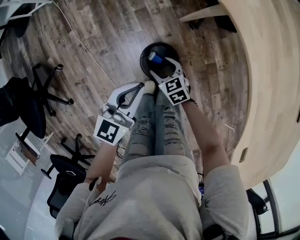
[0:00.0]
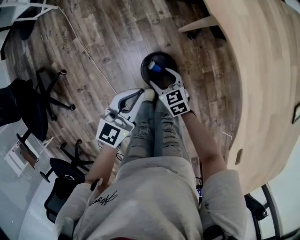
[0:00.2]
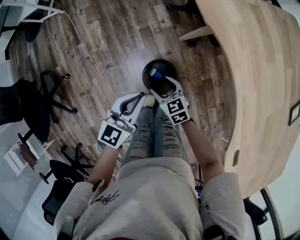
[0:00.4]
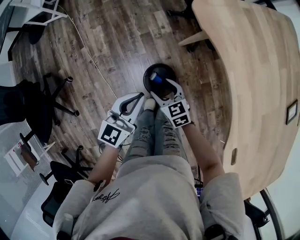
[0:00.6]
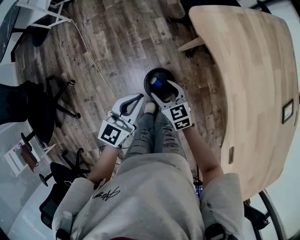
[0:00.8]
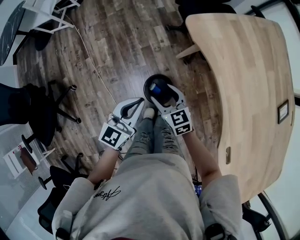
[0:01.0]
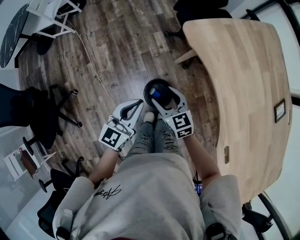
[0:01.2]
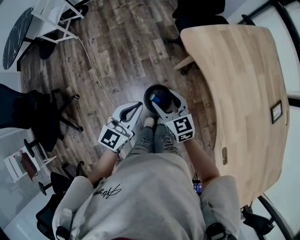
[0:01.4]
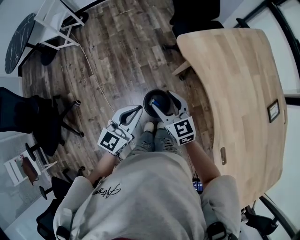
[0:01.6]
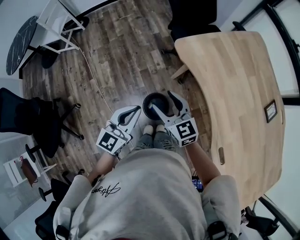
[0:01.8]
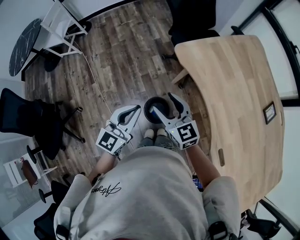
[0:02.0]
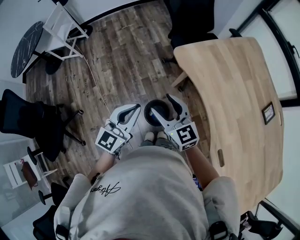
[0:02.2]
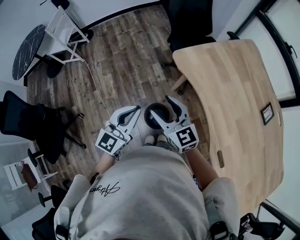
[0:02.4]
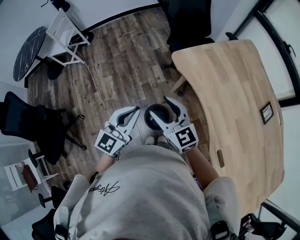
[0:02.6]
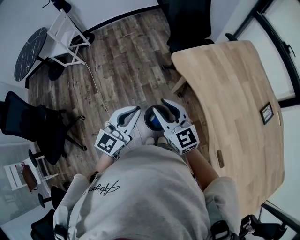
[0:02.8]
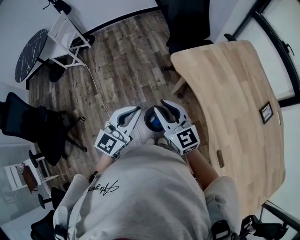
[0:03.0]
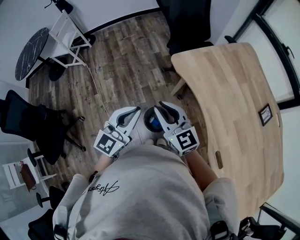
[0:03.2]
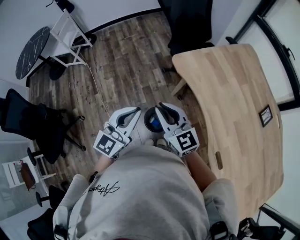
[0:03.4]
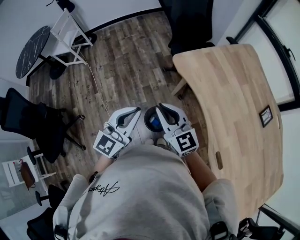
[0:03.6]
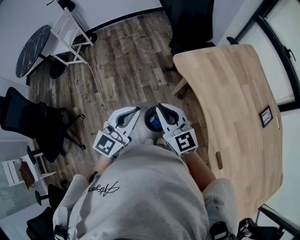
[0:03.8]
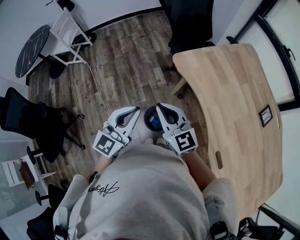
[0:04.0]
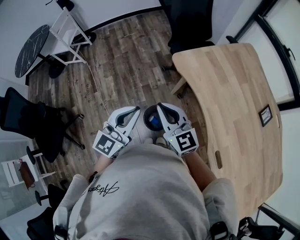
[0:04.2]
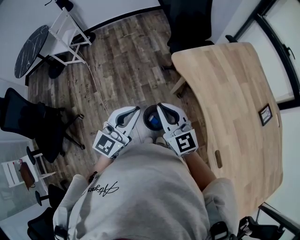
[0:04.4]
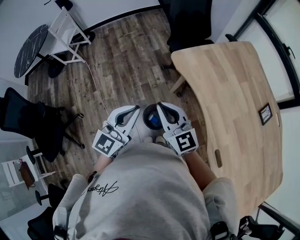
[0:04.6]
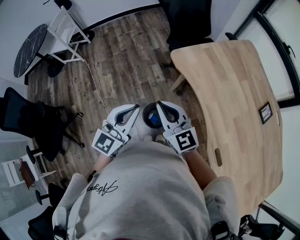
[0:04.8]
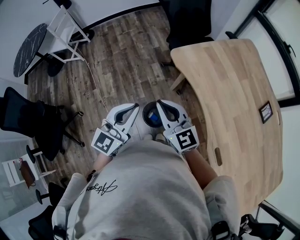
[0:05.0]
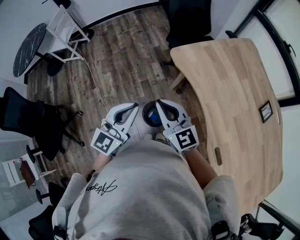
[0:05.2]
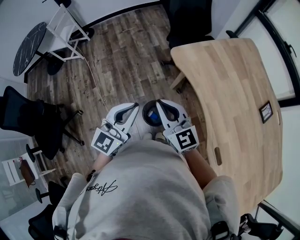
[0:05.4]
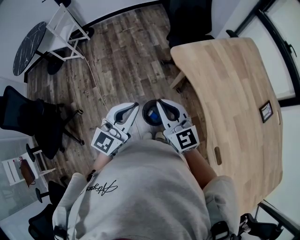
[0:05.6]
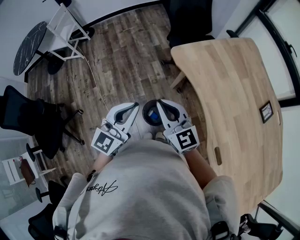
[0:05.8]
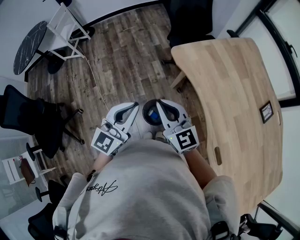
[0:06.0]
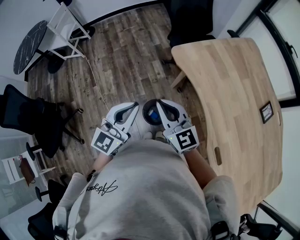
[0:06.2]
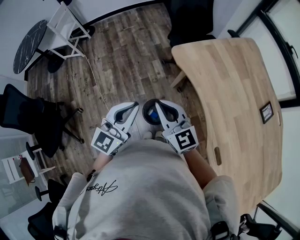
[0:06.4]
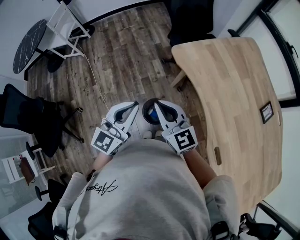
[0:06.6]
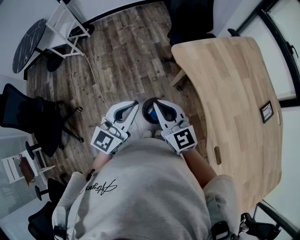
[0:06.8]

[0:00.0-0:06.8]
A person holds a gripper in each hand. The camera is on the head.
0:00.0 to 0:01.4: The right gripper heads upward, covering approximately 30 cm, and turns by roughly 30 degrees. Meanwhile the left gripper moves upward, about 15 cm.
0:01.4 to 0:02.8: Both grippers travel together upward, approximately 15 cm. The right gripper closes up.
0:02.8 to 0:04.0: The right gripper closes up.
0:04.0 to 0:06.8: The two grippers keep their place.

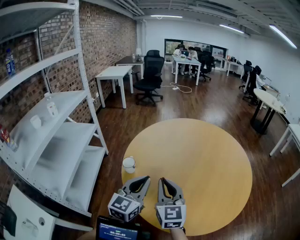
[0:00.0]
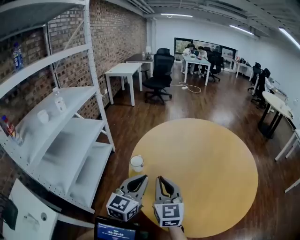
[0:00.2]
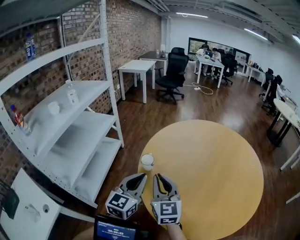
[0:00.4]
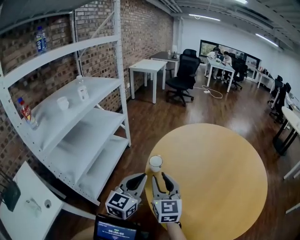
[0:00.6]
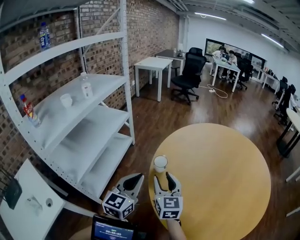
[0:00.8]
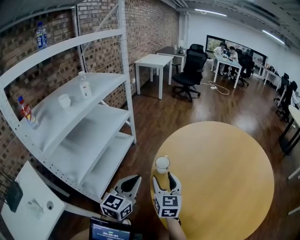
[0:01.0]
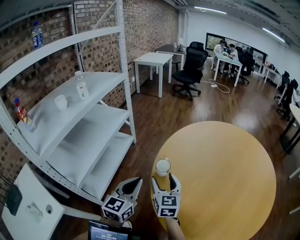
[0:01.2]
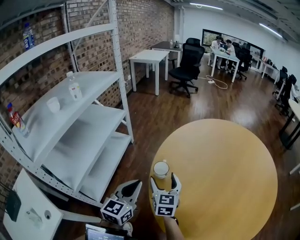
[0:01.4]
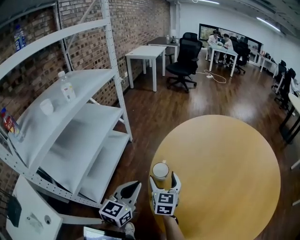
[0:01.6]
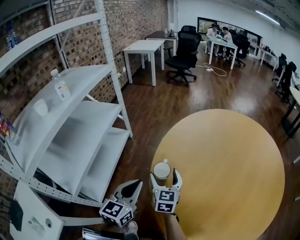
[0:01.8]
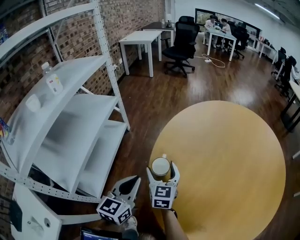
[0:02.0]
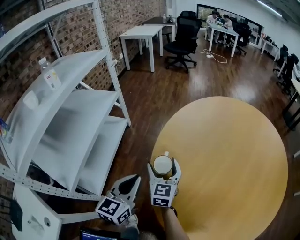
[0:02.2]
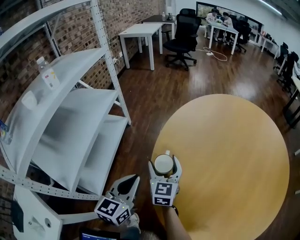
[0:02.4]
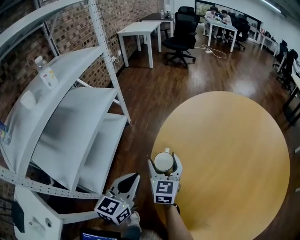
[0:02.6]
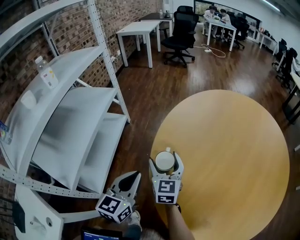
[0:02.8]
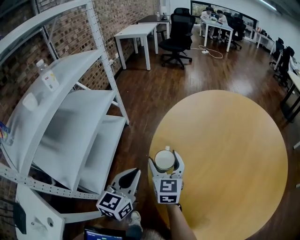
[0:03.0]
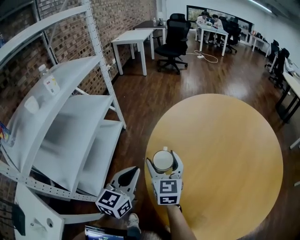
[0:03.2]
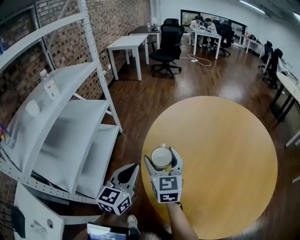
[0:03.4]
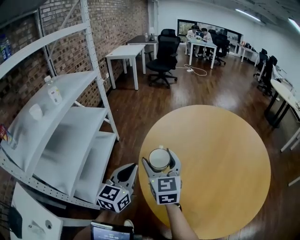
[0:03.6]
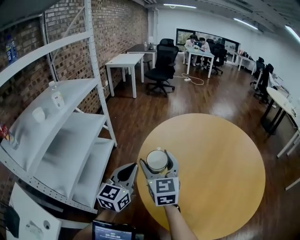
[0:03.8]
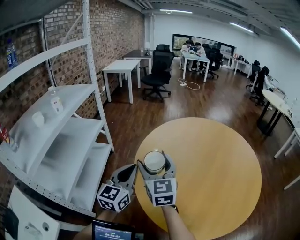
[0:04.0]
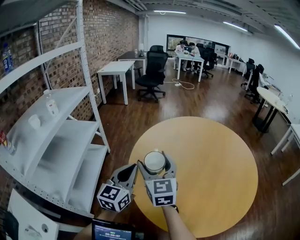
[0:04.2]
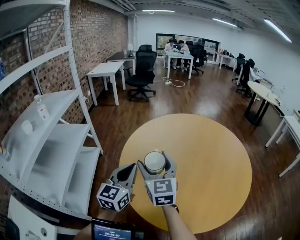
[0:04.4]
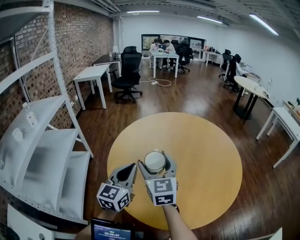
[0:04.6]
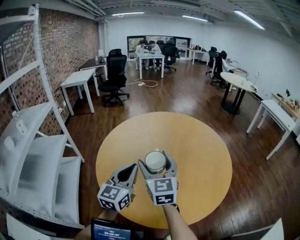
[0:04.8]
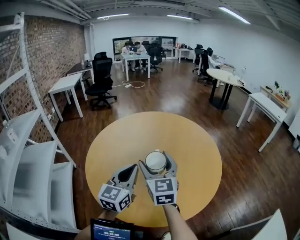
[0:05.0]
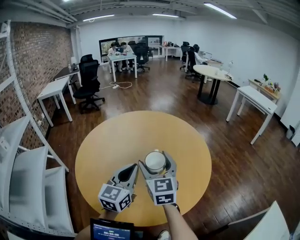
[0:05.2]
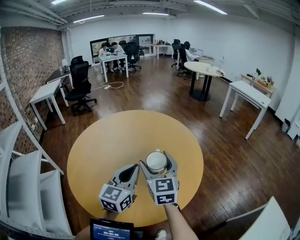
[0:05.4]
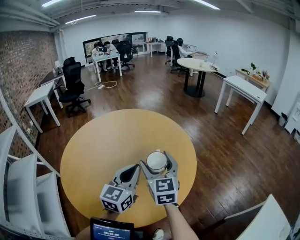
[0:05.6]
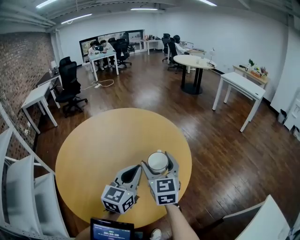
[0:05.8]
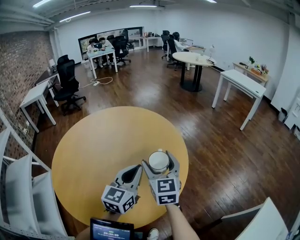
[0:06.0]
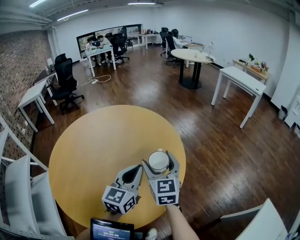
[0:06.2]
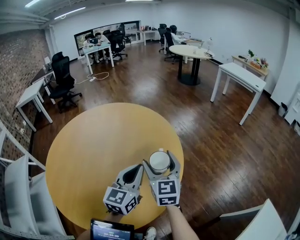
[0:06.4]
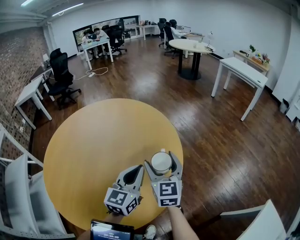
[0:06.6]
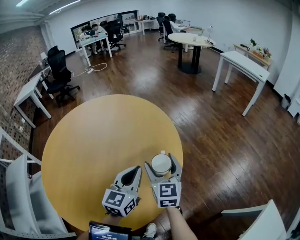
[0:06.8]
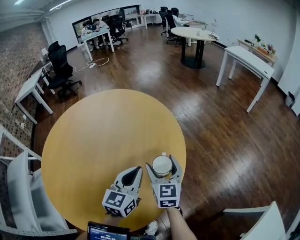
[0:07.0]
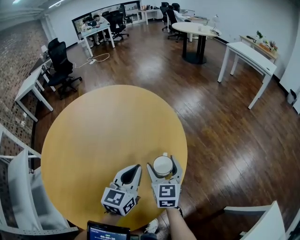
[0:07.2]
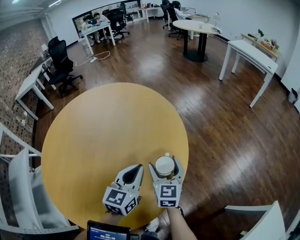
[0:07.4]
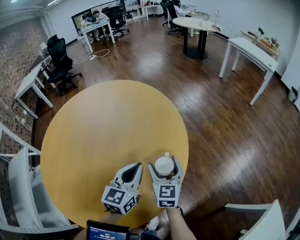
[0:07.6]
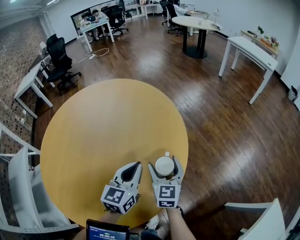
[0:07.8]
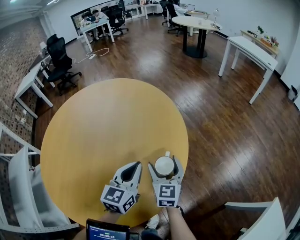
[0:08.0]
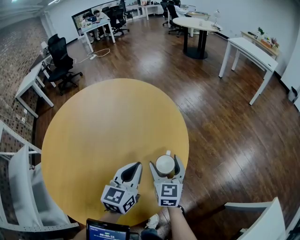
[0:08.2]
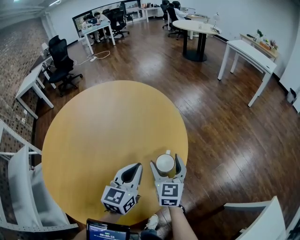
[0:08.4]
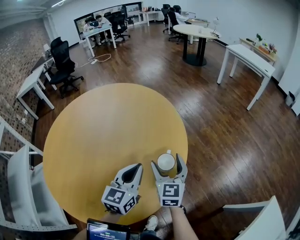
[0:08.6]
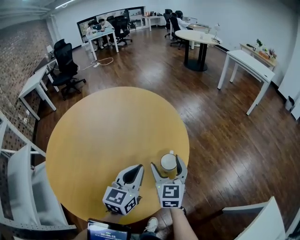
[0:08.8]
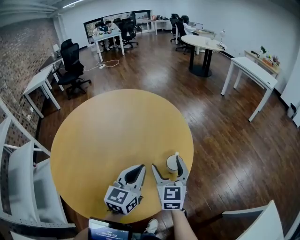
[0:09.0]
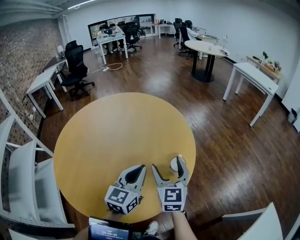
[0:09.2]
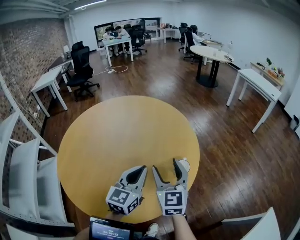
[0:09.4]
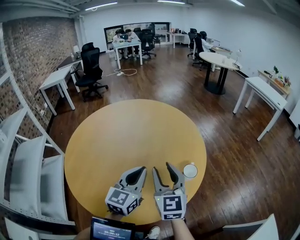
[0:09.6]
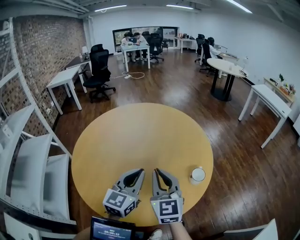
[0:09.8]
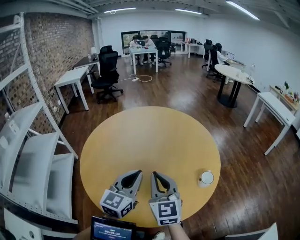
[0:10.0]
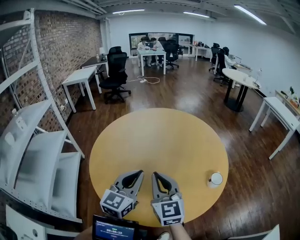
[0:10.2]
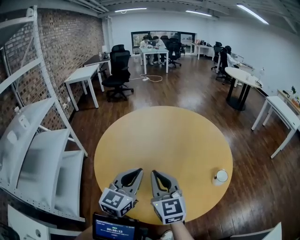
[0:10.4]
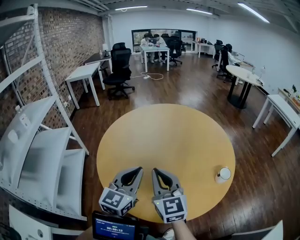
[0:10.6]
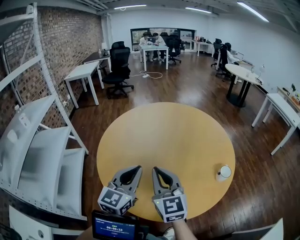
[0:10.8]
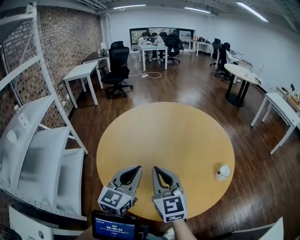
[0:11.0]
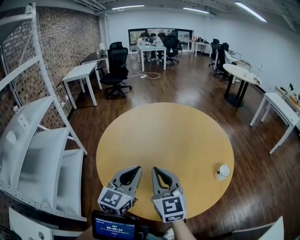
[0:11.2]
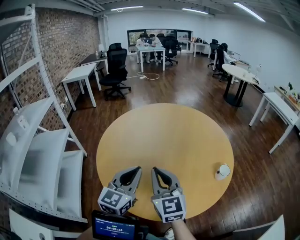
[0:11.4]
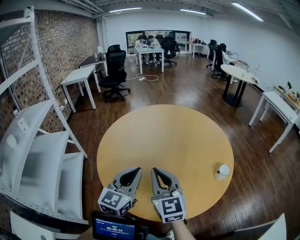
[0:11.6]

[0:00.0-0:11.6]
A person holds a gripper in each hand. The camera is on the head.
0:00.0 to 0:01.4: The left gripper heads to the left and downward, covering roughly 20 cm; the right gripper heads downward, to the left and forward, covering some 25 cm, and opens its fingers.
0:01.4 to 0:02.8: The right gripper moves forward, roughly 5 cm, while the left gripper goes roughly 5 cm downward.
0:02.8 to 0:04.4: The left gripper is displaced upward and to the right by some 20 cm, while the right gripper goes approximately 30 cm upward, to the right and backward.
0:04.4 to 0:05.8: The two grippers travel together, some 40 cm. The right gripper changes its angle by some 30 degrees, while the left gripper changes its angle by some 30 degrees.
0:05.8 to 0:07.2: The right gripper moves downward, to the right and forward, roughly 20 cm; the left gripper moves downward, forward and to the right, roughly 15 cm.
0:07.2 to 0:08.8: The right gripper changes place by approximately 5 cm. Meanwhile the left gripper travels backward by approximately 5 cm.
0:08.8 to 0:10.2: The grippers both shift to the left and upward by approximately 30 cm. The right gripper changes its angle by roughly 30 degrees, and closes up.
0:10.2 to 0:11.6: Both grippers travel together to the left, some 5 cm.

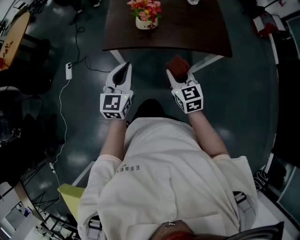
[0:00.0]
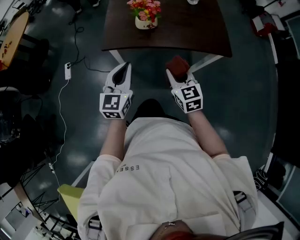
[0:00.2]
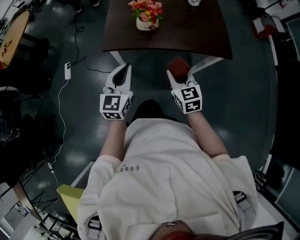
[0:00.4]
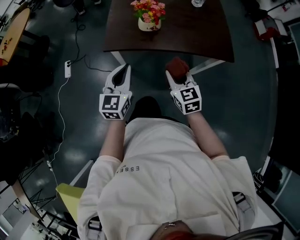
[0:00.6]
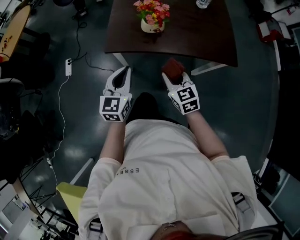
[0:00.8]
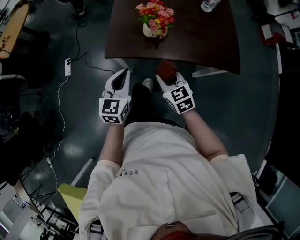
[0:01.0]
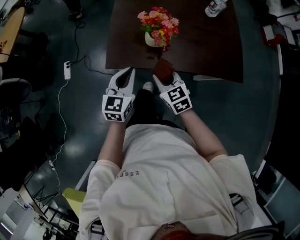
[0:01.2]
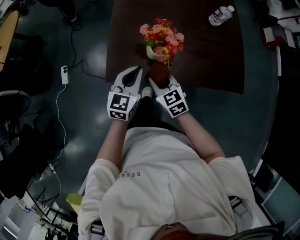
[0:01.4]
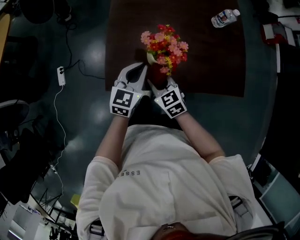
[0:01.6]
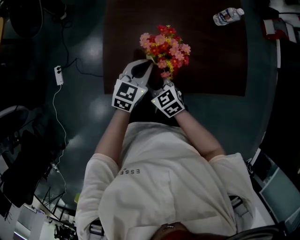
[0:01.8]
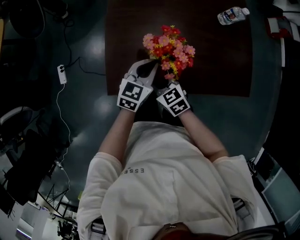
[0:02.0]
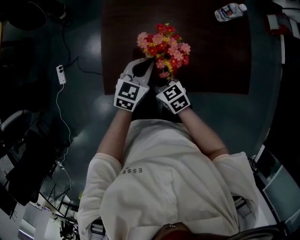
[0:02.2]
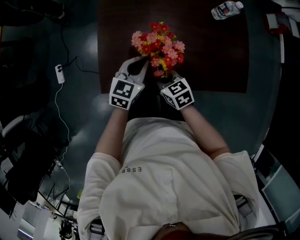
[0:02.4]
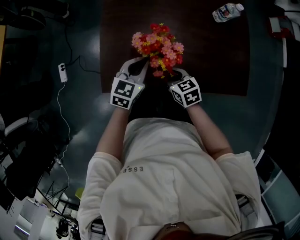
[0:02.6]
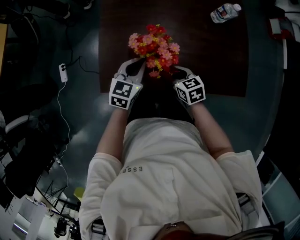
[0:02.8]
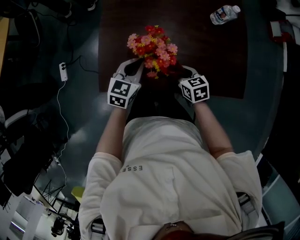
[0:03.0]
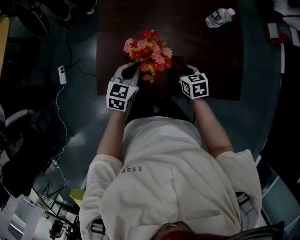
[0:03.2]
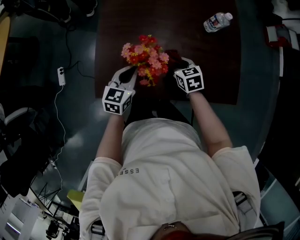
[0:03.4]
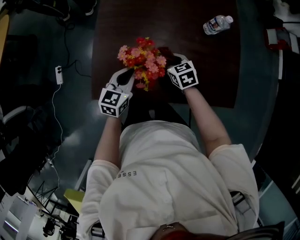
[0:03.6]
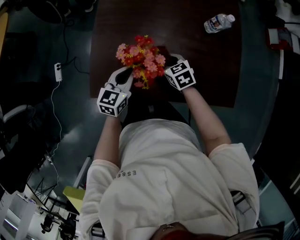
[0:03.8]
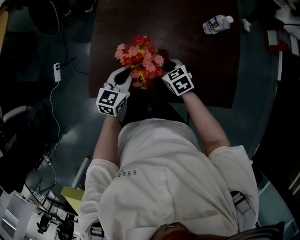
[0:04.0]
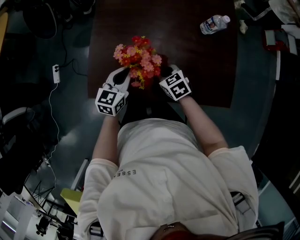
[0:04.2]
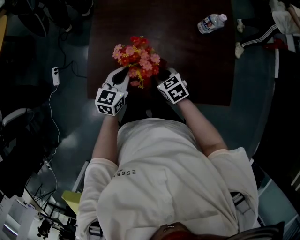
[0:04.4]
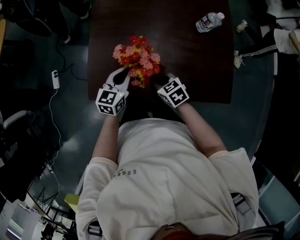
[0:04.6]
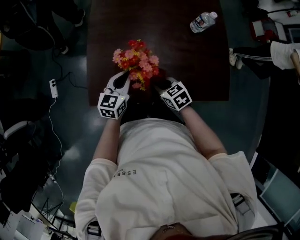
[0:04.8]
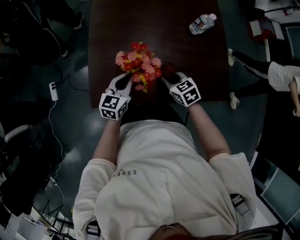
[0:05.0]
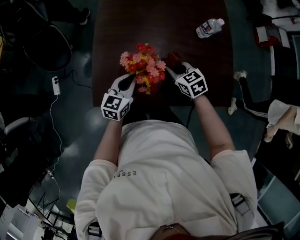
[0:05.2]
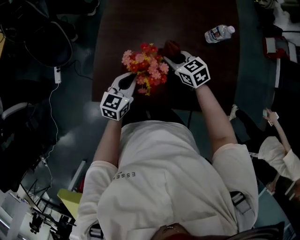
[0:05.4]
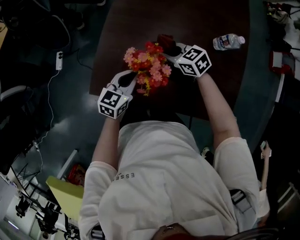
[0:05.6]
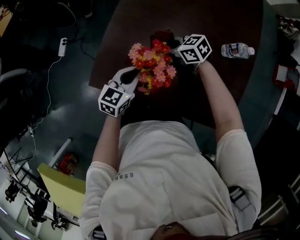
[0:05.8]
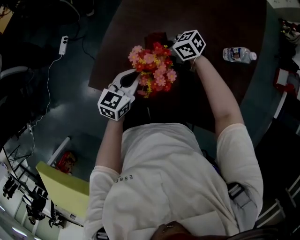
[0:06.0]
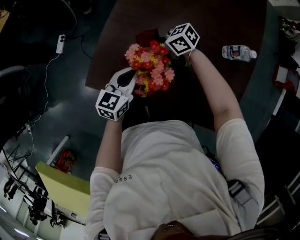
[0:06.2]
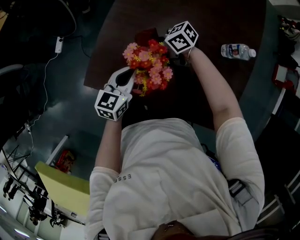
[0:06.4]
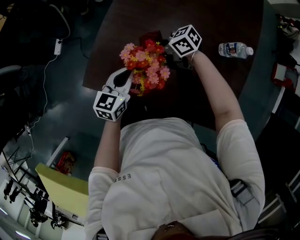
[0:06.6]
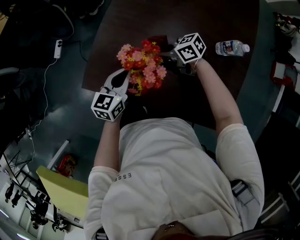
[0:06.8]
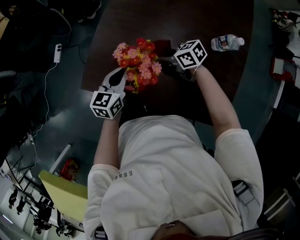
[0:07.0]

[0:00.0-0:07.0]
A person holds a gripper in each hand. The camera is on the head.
0:00.0 to 0:01.4: The right gripper is displaced forward and to the left by approximately 20 cm. Meanwhile the left gripper is displaced forward by approximately 20 cm.
0:01.4 to 0:02.8: The right gripper moves to the right, forward and downward, roughly 15 cm. The left gripper is displaced forward and downward by approximately 10 cm.
0:04.2 to 0:05.6: The right gripper shifts some 10 cm forward and upward, and changes its angle by roughly 30 degrees.
0:05.6 to 0:07.0: The right gripper rotates some 20 degrees.
